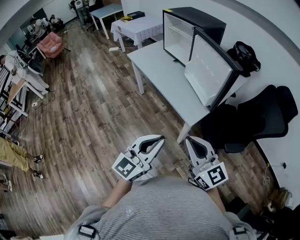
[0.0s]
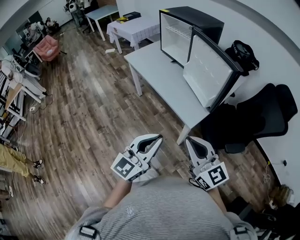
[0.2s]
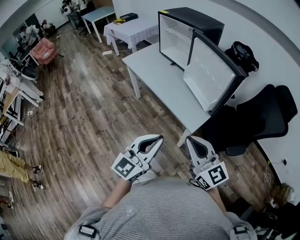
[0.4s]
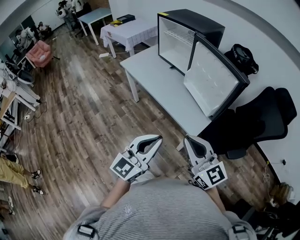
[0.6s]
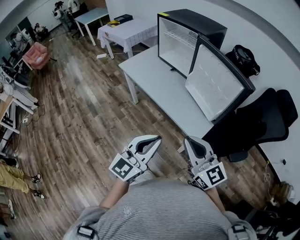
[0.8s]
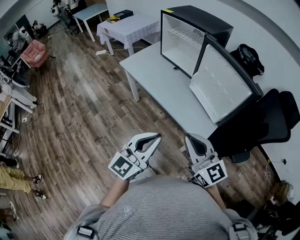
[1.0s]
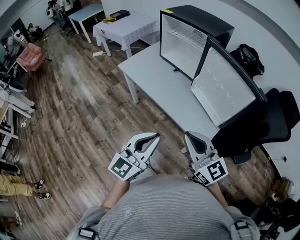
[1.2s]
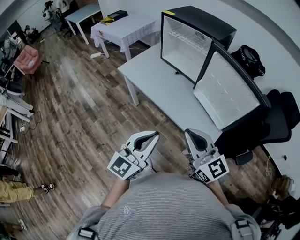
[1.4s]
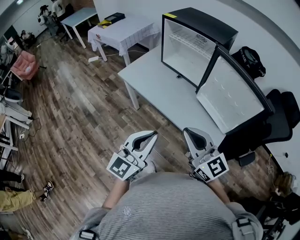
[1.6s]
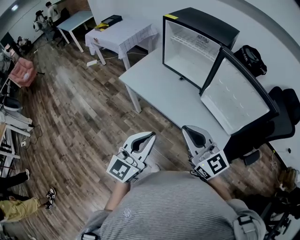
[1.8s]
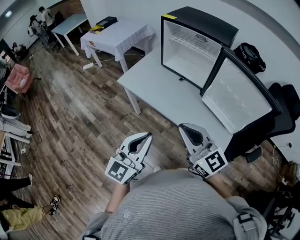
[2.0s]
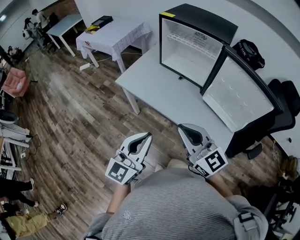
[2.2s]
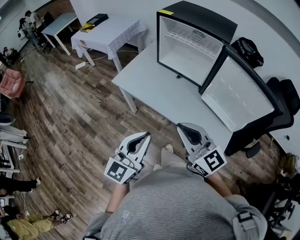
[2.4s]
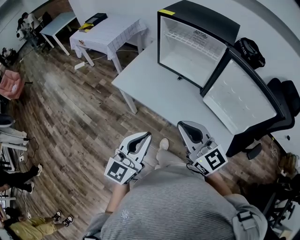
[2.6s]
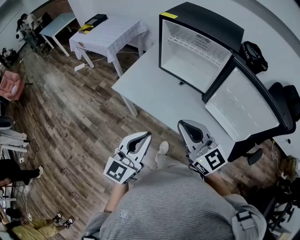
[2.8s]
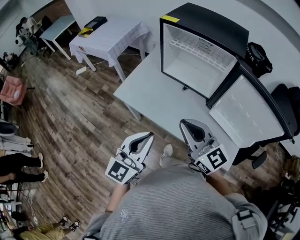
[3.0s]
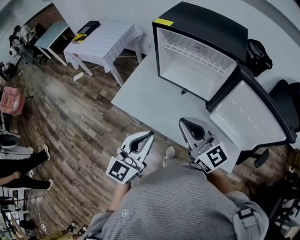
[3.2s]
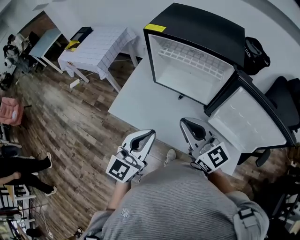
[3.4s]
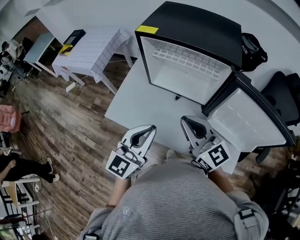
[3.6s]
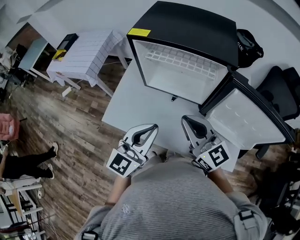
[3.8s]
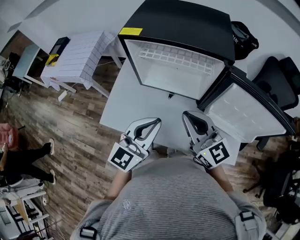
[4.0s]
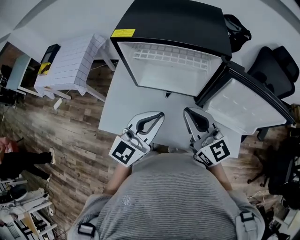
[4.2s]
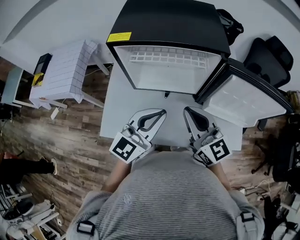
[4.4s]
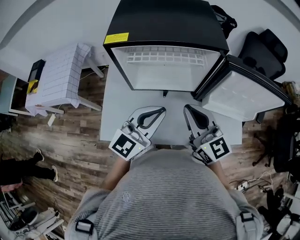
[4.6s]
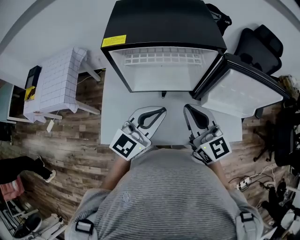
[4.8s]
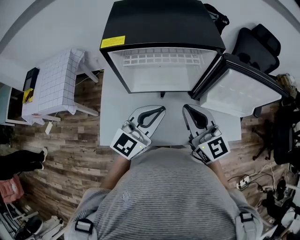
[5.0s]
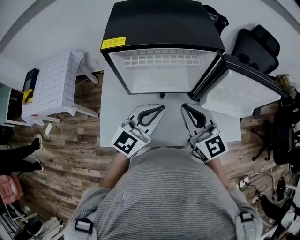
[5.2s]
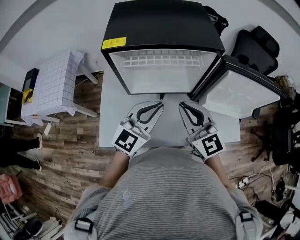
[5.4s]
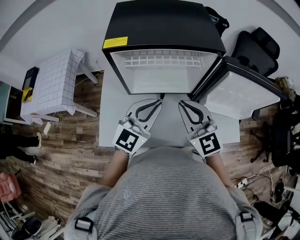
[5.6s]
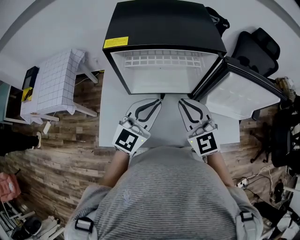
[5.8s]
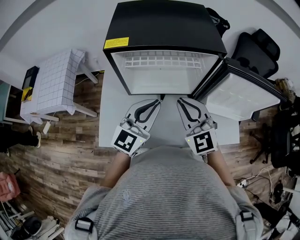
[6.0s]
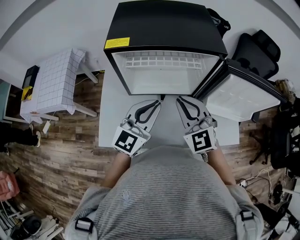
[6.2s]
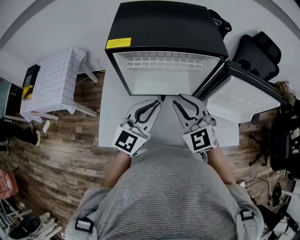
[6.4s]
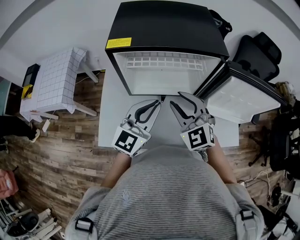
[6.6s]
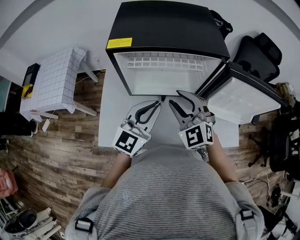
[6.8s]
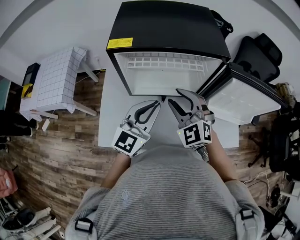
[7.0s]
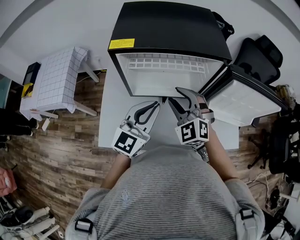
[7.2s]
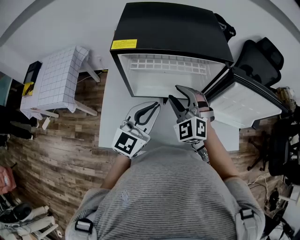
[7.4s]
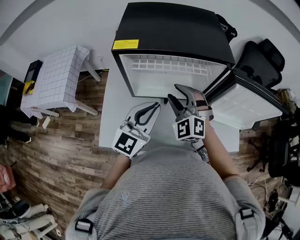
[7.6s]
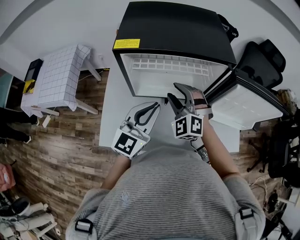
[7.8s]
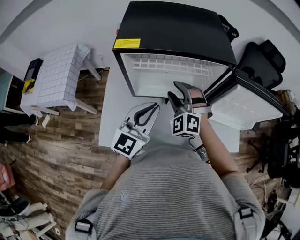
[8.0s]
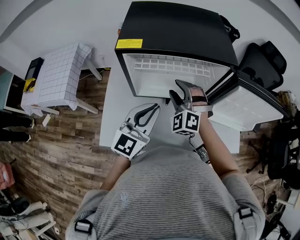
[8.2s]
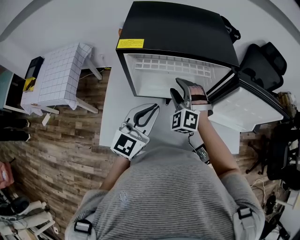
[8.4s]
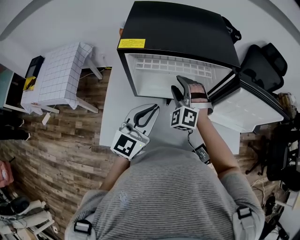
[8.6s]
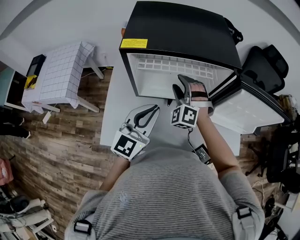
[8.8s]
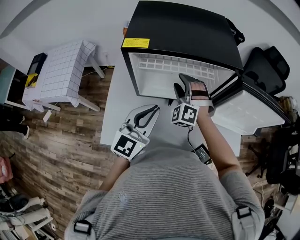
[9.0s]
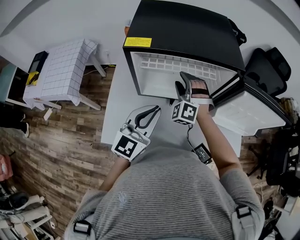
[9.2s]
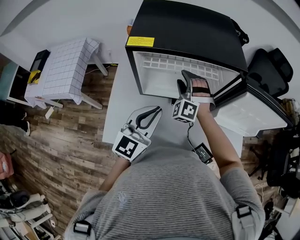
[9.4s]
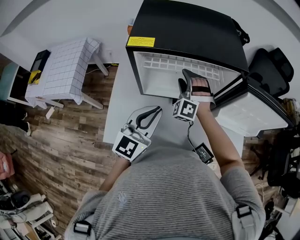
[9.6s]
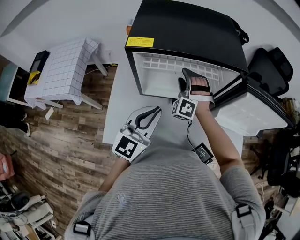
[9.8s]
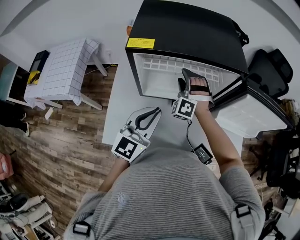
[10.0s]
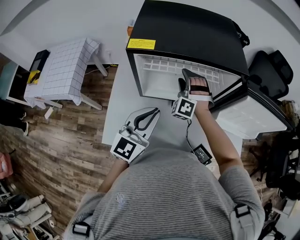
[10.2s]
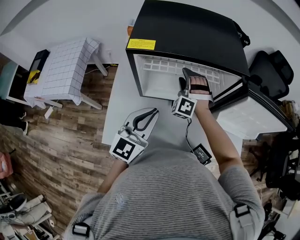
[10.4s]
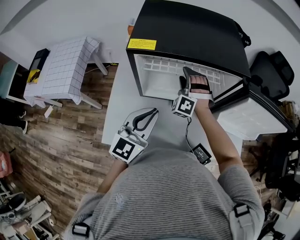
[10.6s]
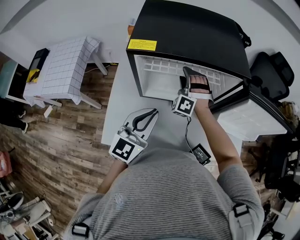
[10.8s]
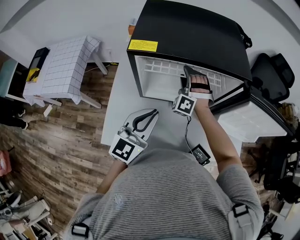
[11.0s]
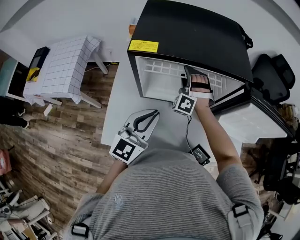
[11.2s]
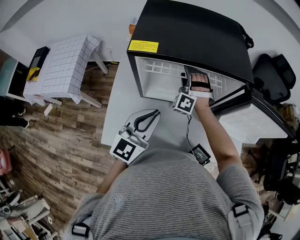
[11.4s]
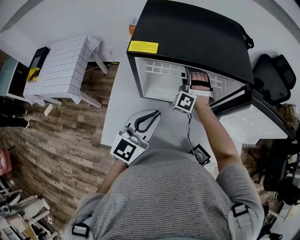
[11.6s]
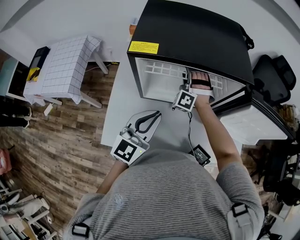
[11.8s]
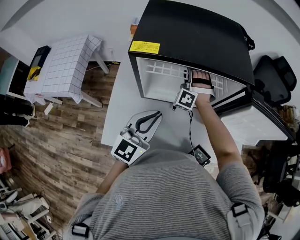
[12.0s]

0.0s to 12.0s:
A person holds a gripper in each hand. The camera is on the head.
0.0s to 1.6s: Both grippers move forward and to the left, some 35 cm.
1.6s to 3.0s: The two grippers go about 25 cm forward and to the left.
3.0s to 4.4s: The right gripper ends up roughly 15 cm from where it was, and rotates about 30 degrees. The left gripper ends up about 25 cm from where it was, and turns by approximately 40 degrees.
4.4s to 6.0s: The left gripper moves about 5 cm. Meanwhile the right gripper shifts by approximately 5 cm, and turns by about 40 degrees.
6.0s to 7.6s: The right gripper shifts about 10 cm forward and downward, changes its angle by about 30 degrees, and opens.
7.6s to 9.0s: The right gripper moves forward, about 5 cm, and turns by roughly 20 degrees.
9.0s to 10.4s: The right gripper heads forward, covering some 5 cm.
10.4s to 12.0s: The right gripper heads forward, covering roughly 5 cm.

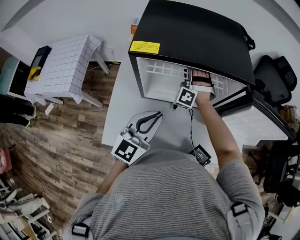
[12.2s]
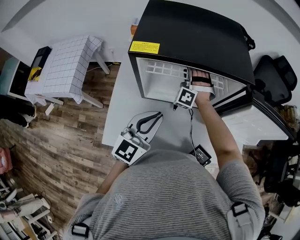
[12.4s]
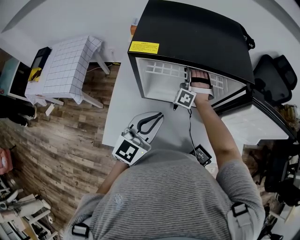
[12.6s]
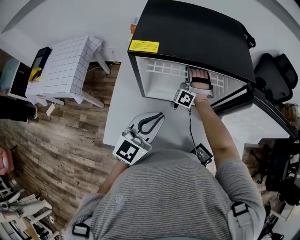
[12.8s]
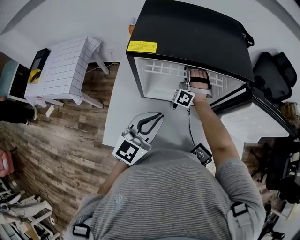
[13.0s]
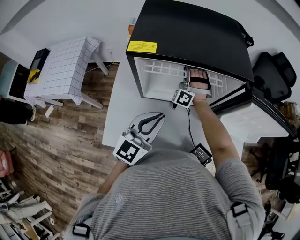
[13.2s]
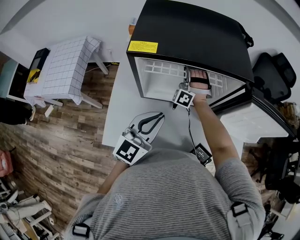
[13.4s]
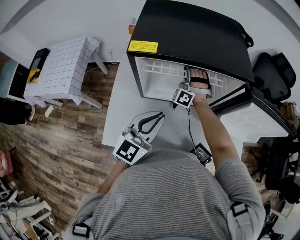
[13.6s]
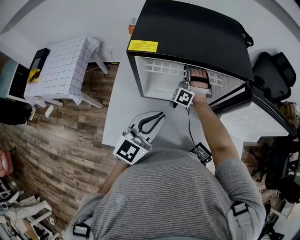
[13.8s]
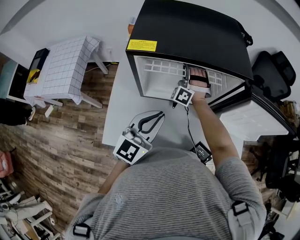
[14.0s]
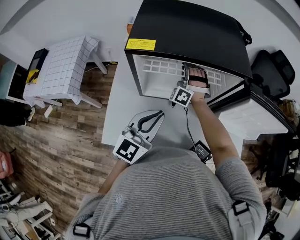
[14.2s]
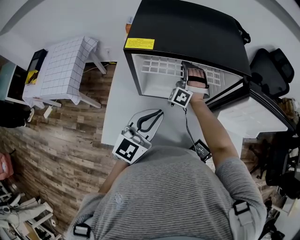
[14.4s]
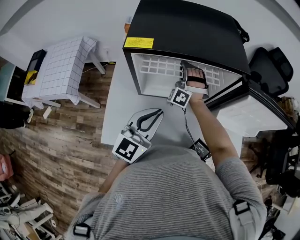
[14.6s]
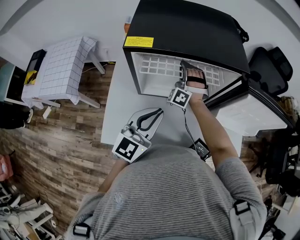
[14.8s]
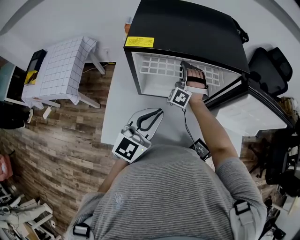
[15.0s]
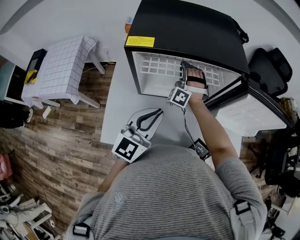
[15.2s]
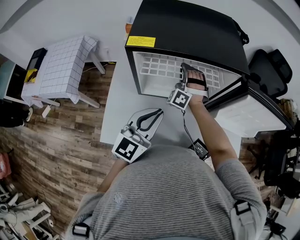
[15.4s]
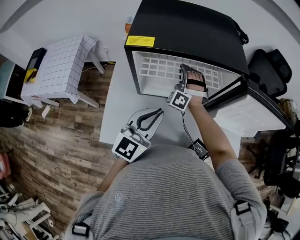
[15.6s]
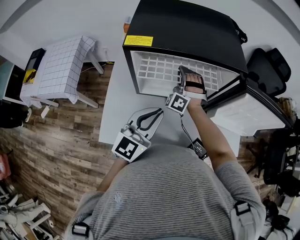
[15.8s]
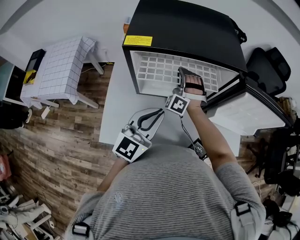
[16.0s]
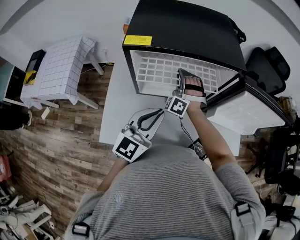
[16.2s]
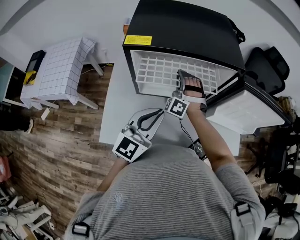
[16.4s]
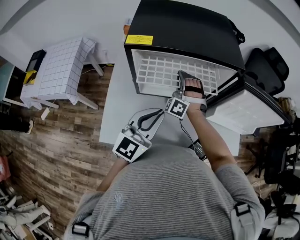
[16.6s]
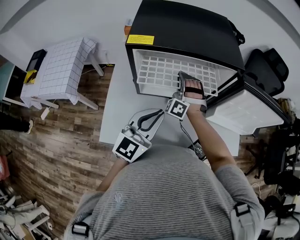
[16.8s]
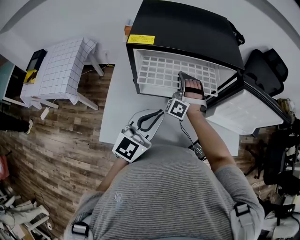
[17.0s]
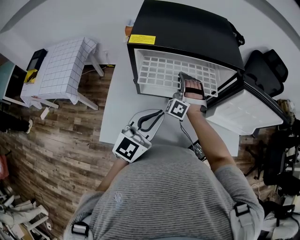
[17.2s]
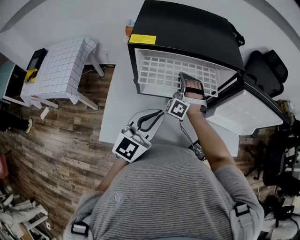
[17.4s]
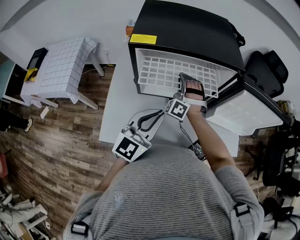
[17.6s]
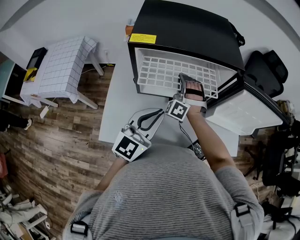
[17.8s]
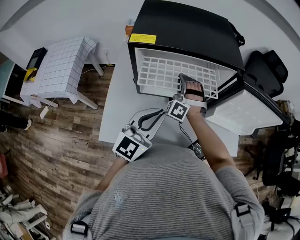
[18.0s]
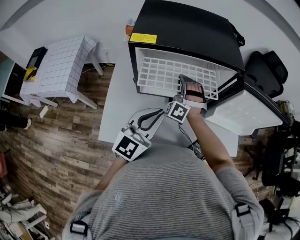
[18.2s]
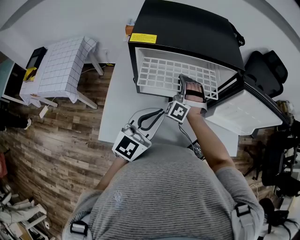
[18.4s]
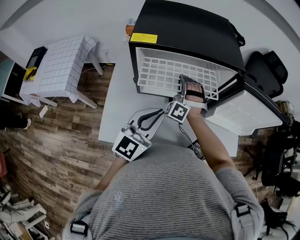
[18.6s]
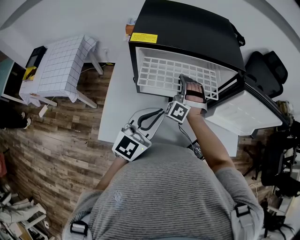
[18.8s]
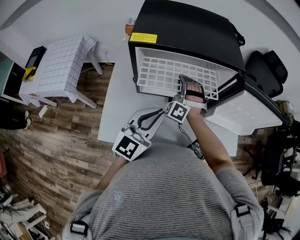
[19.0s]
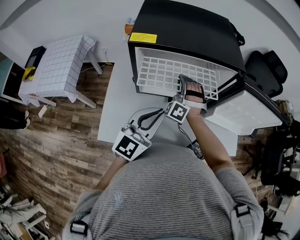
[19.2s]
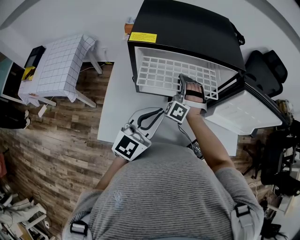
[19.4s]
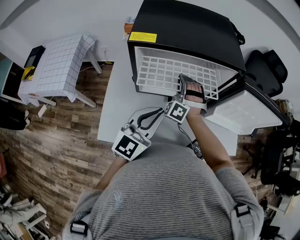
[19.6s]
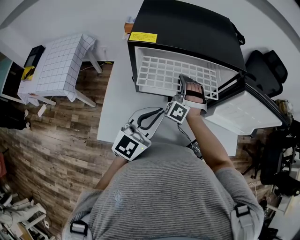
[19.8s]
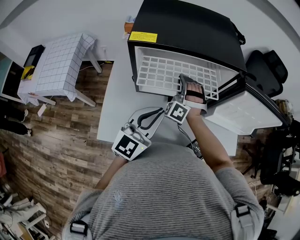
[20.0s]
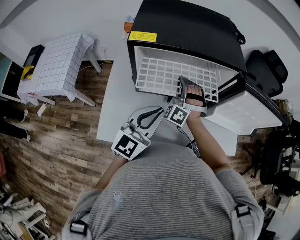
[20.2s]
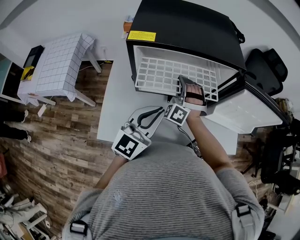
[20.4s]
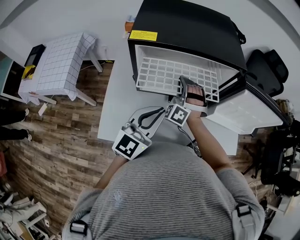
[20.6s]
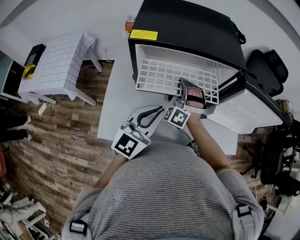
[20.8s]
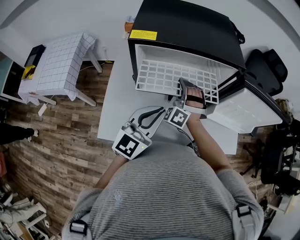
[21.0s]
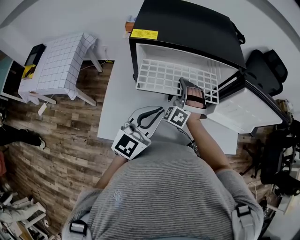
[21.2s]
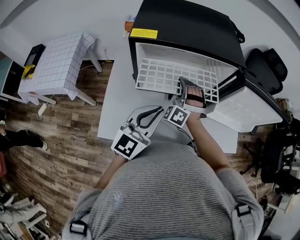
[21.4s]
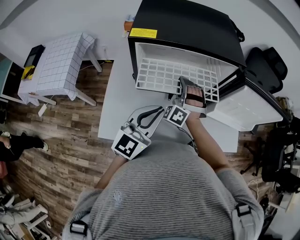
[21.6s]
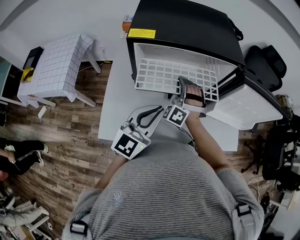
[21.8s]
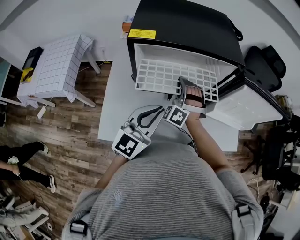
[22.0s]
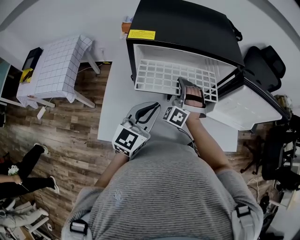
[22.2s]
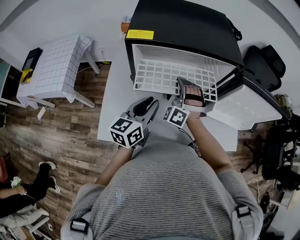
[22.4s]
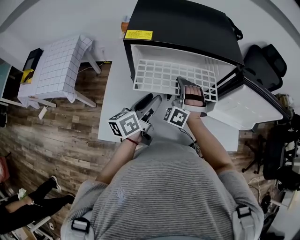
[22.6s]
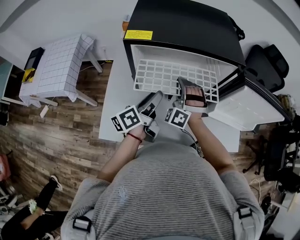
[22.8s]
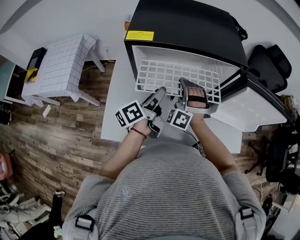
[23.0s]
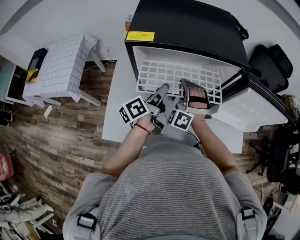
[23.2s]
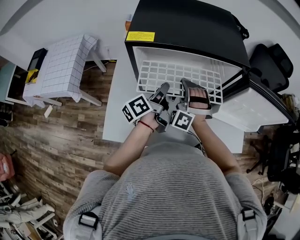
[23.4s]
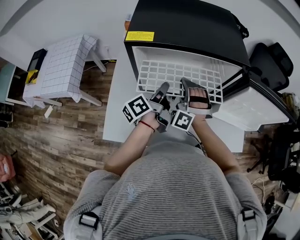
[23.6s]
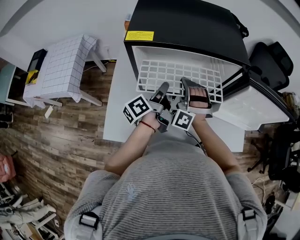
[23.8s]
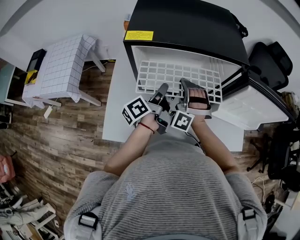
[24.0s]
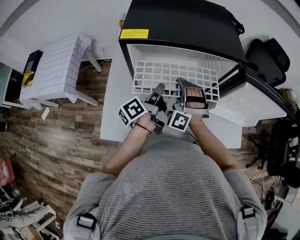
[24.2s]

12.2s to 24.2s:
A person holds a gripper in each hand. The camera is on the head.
12.2s to 13.8s: The right gripper closes up.
13.8s to 15.2s: The grippers stay close to where they were, moving slightly.
15.2s to 16.6s: The right gripper is displaced backward by approximately 5 cm.
16.6s to 21.2s: The grippers stay close to where they were, moving slightly.
21.2s to 22.6s: The left gripper heads downward and forward, covering about 10 cm, rotates around the line of its fingers by roughly 50 degrees, counterclockwise from behind, and opens.
22.6s to 24.2s: The left gripper travels forward by approximately 5 cm, changes its angle by about 30 degrees, and closes its fingers.
